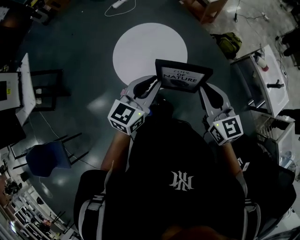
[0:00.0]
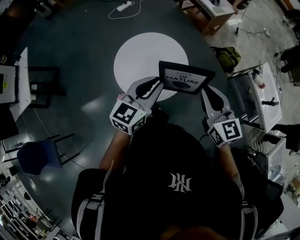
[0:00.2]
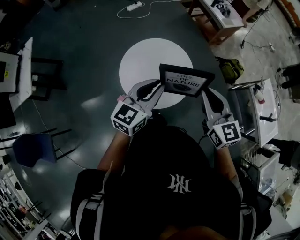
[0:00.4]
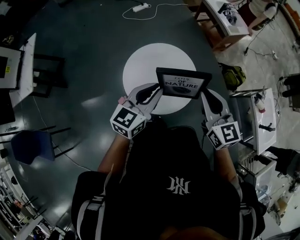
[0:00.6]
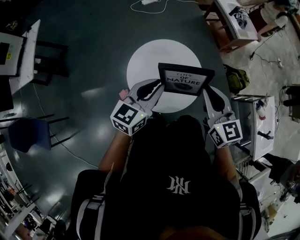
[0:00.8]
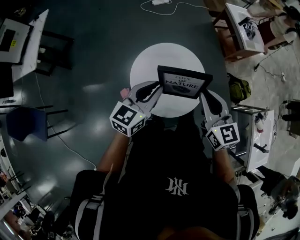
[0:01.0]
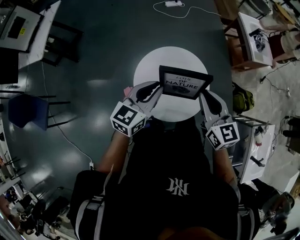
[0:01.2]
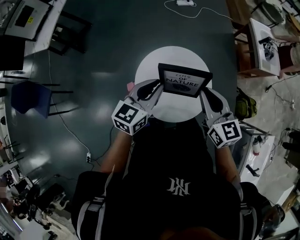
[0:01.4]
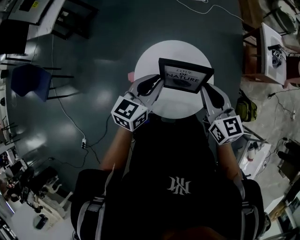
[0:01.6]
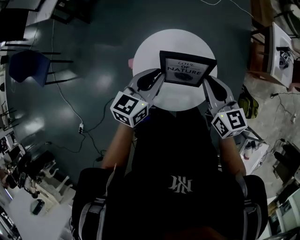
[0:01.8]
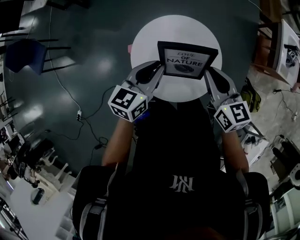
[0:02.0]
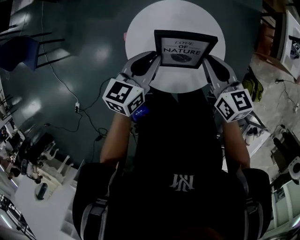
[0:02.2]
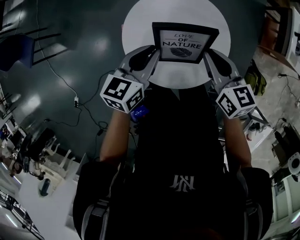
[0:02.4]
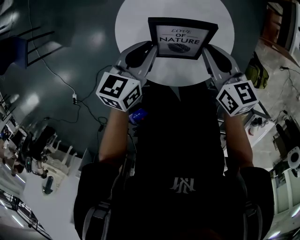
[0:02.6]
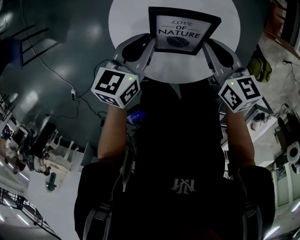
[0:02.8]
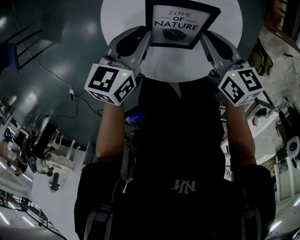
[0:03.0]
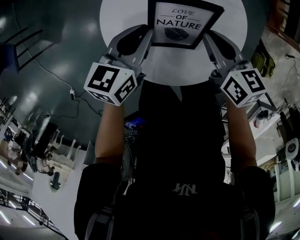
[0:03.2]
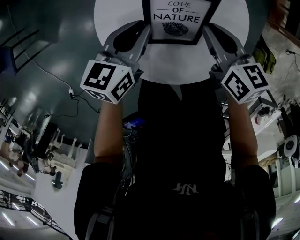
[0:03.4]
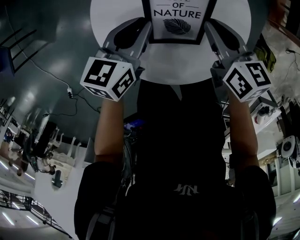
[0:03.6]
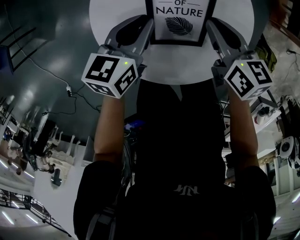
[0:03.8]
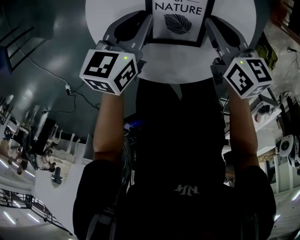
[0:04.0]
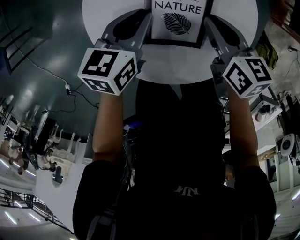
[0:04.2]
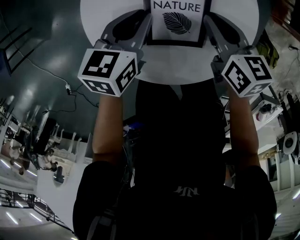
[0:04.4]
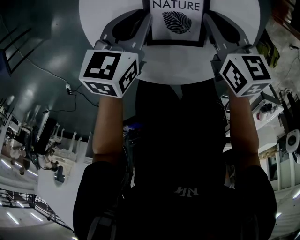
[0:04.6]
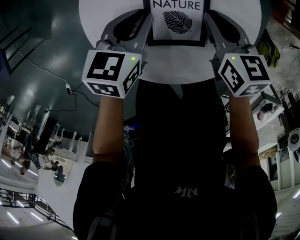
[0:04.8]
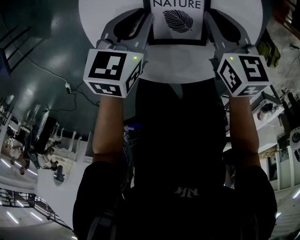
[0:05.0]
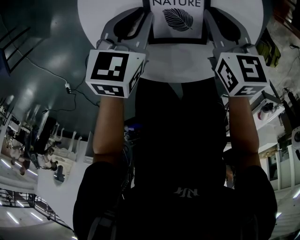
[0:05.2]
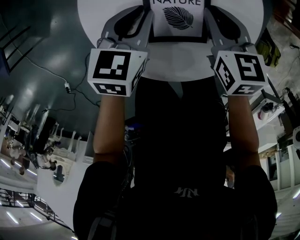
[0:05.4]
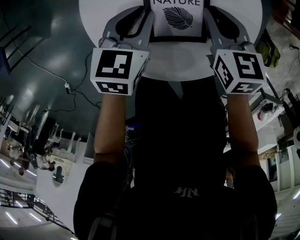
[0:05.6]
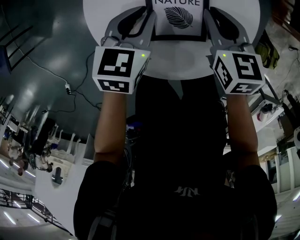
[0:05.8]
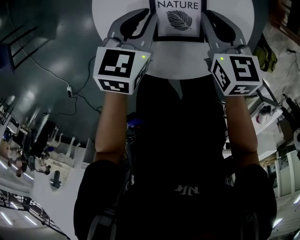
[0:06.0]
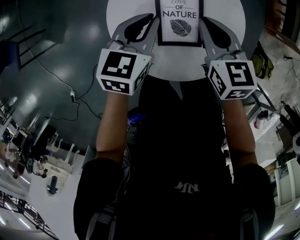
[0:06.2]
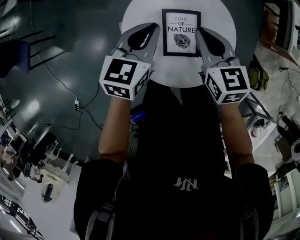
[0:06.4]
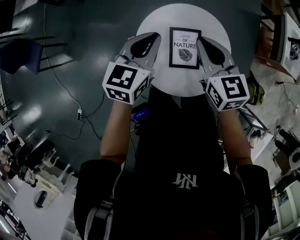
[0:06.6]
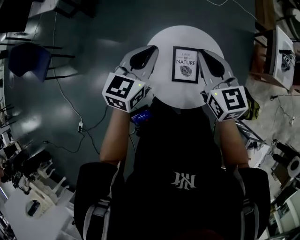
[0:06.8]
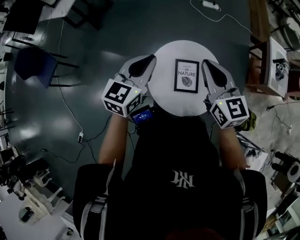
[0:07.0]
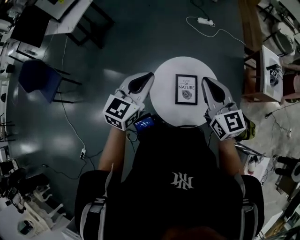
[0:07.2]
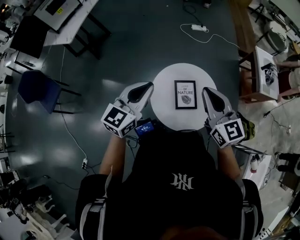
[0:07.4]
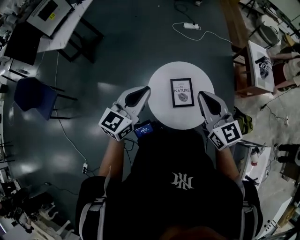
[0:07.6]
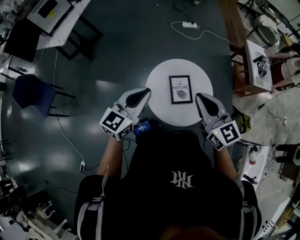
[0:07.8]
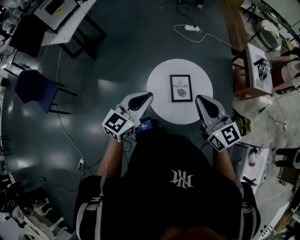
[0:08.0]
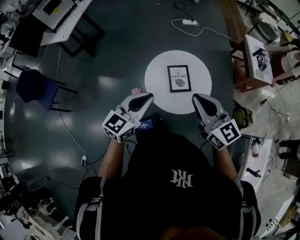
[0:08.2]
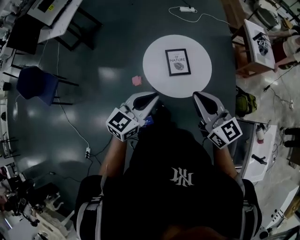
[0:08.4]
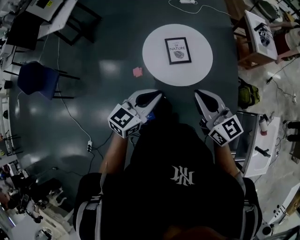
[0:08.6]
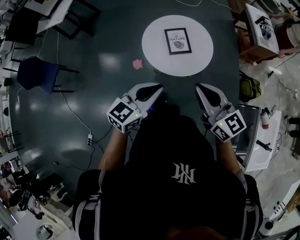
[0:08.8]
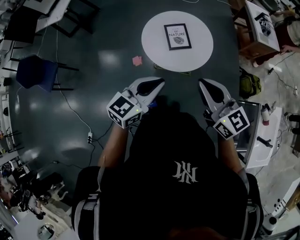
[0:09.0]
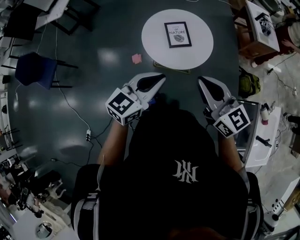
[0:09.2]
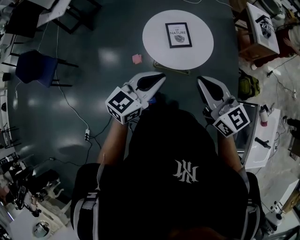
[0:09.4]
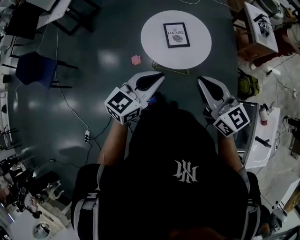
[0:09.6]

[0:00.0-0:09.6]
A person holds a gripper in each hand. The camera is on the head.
0:00.0 to 0:01.6: The left gripper changes place by roughly 25 cm, and rotates about 40 degrees; the right gripper ends up some 35 cm from where it was, and changes its angle by about 40 degrees.
0:01.6 to 0:03.2: Both grippers move downward, approximately 30 cm. The right gripper rotates about 30 degrees.
0:03.2 to 0:04.8: Both grippers move downward, some 10 cm.
0:04.8 to 0:06.4: Both grippers travel together upward, approximately 20 cm.
0:06.4 to 0:08.0: The two grippers go approximately 35 cm upward and backward. The left gripper rotates roughly 30 degrees. The right gripper swivels approximately 30 degrees.
0:08.0 to 0:09.6: The left gripper heads backward and to the right, covering about 25 cm; the right gripper travels backward by roughly 25 cm.

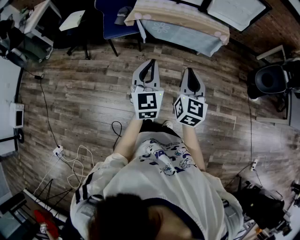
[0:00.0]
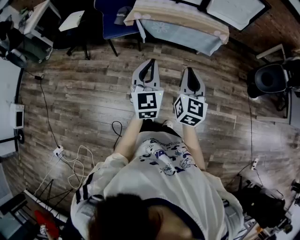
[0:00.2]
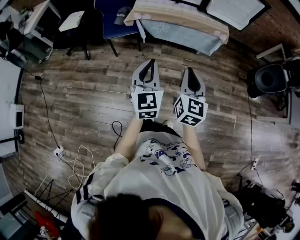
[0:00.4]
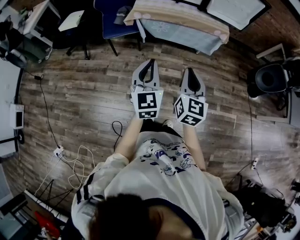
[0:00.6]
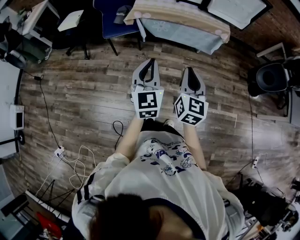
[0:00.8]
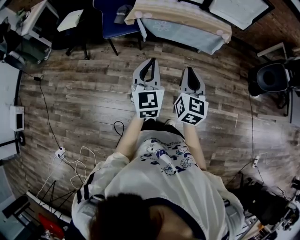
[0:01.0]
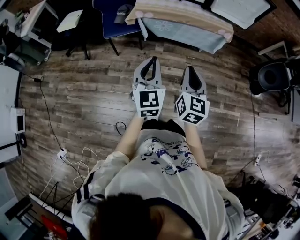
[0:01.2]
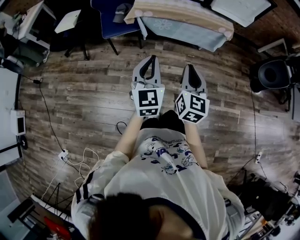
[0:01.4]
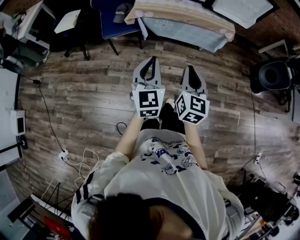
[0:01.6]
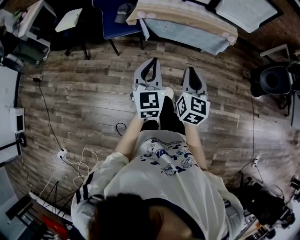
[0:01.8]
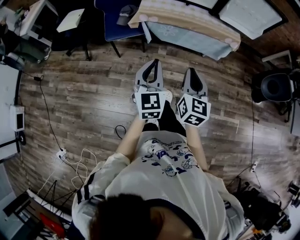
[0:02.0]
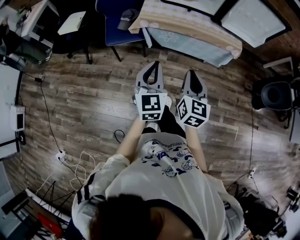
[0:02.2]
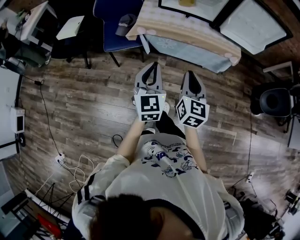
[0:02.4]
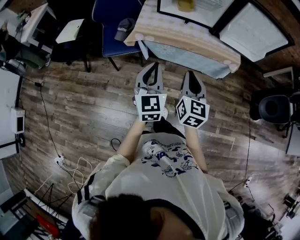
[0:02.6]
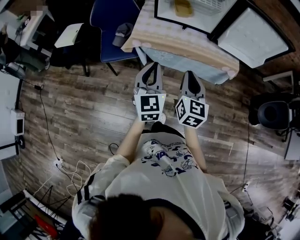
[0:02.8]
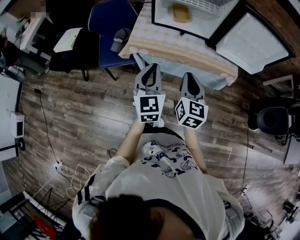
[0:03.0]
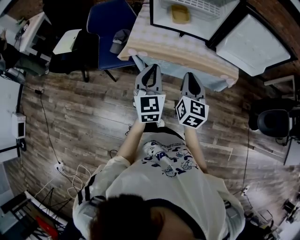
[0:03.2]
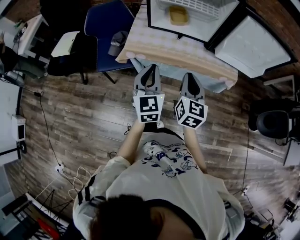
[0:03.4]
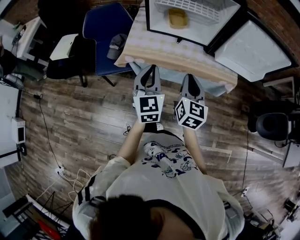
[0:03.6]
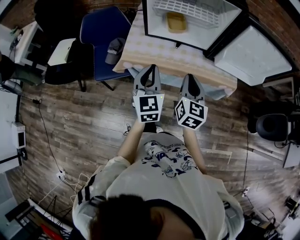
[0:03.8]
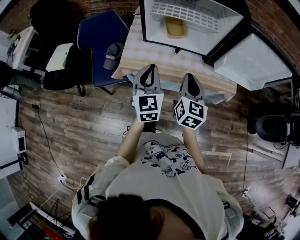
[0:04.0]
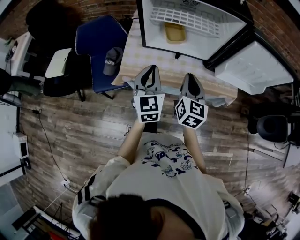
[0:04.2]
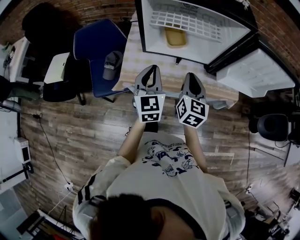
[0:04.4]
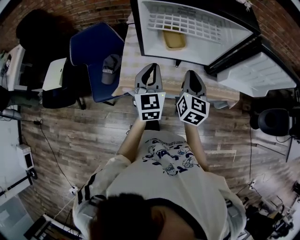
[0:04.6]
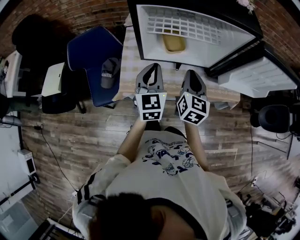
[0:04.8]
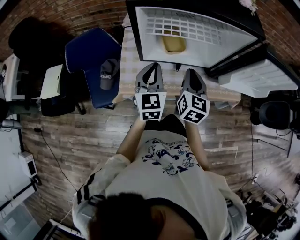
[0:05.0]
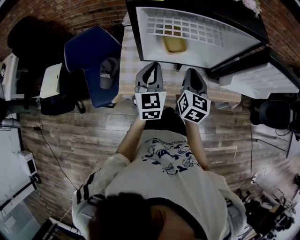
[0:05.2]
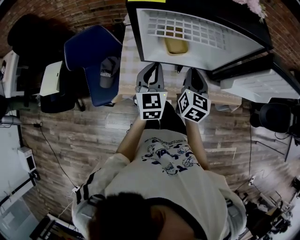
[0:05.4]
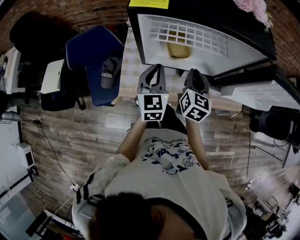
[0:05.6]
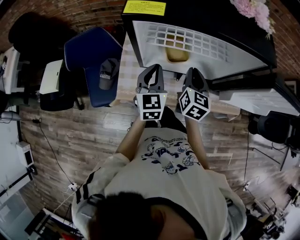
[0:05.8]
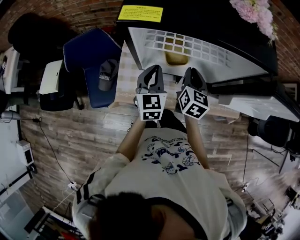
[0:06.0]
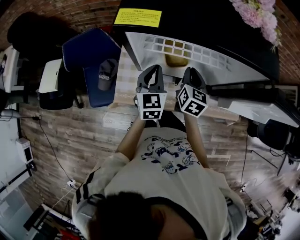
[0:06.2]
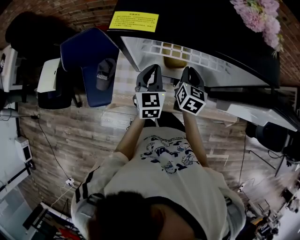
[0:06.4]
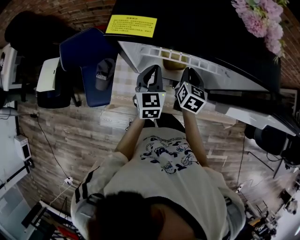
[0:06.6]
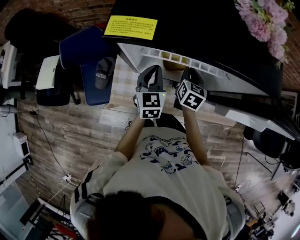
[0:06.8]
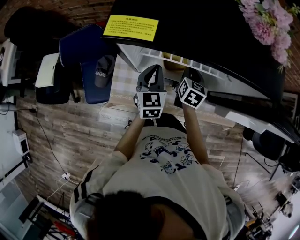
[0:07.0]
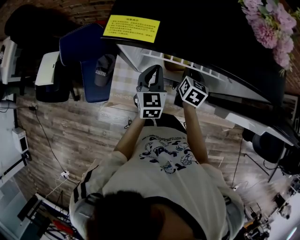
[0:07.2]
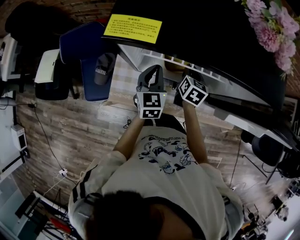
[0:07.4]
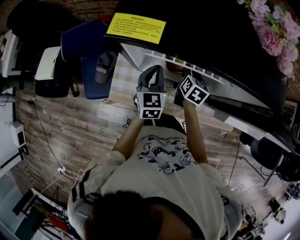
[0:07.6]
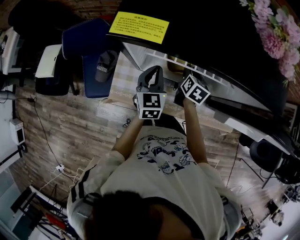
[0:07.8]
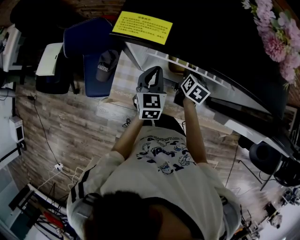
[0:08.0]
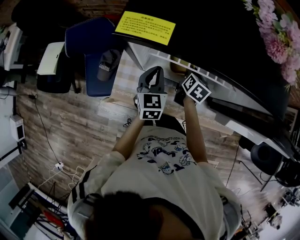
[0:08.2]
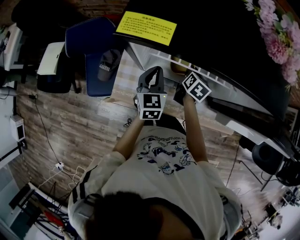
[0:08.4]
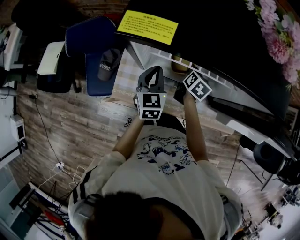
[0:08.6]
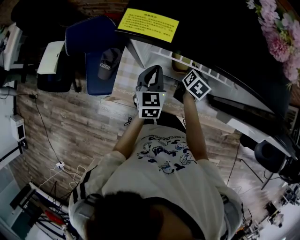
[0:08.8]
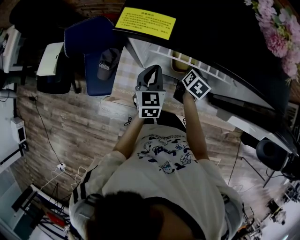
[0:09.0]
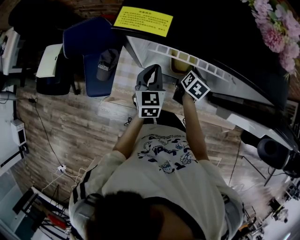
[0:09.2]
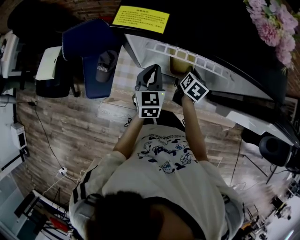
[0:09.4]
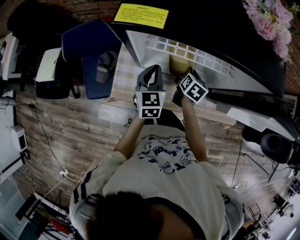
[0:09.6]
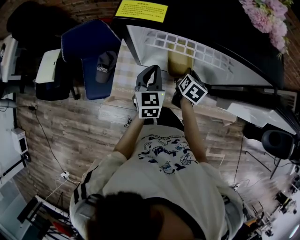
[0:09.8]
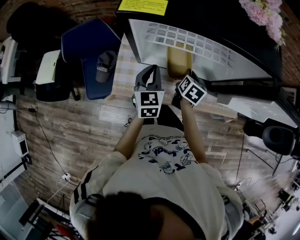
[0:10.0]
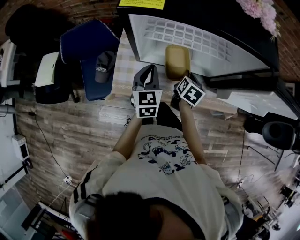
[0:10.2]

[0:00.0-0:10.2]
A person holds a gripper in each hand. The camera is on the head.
0:00.0 to 0:01.4: The right gripper moves some 5 cm. The left gripper travels forward by roughly 5 cm.
0:01.4 to 0:03.0: The two grippers go about 30 cm forward.
0:03.0 to 0:04.4: The grippers both shift forward by some 25 cm.
0:04.4 to 0:05.8: Both grippers move forward, approximately 15 cm.
0:05.8 to 0:07.2: The left gripper moves forward and downward, some 10 cm. The right gripper moves downward and forward, some 15 cm.
0:07.2 to 0:08.8: The grippers make only small movements.
0:08.8 to 0:10.2: The right gripper travels backward by about 10 cm, while the left gripper goes about 5 cm backward.

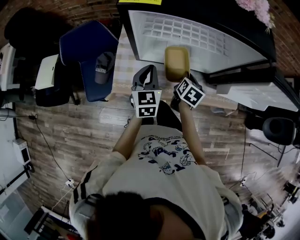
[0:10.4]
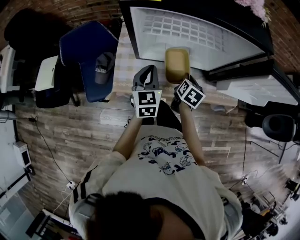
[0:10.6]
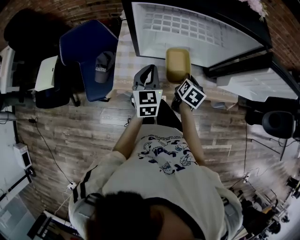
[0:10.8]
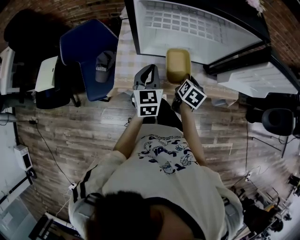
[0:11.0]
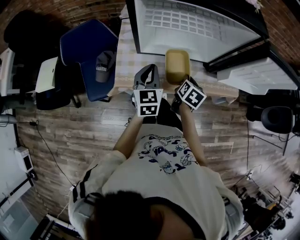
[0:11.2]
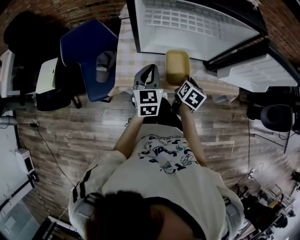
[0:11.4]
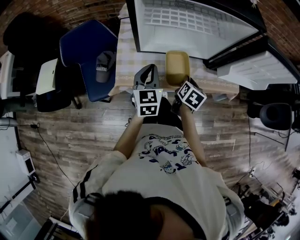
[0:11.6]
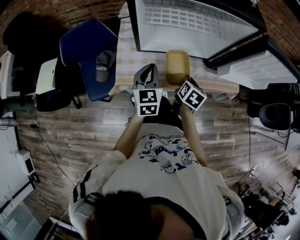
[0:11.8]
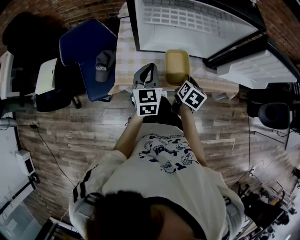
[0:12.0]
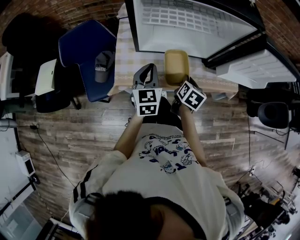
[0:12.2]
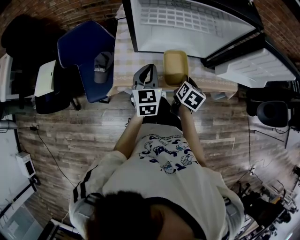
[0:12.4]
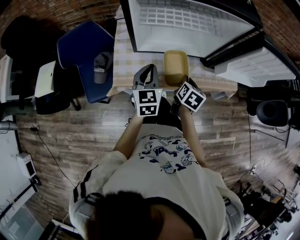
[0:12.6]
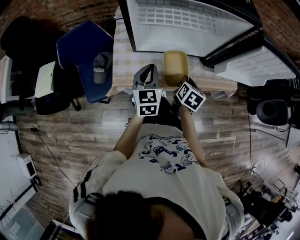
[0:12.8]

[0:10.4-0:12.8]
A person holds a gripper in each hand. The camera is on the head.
0:10.4 to 0:11.6: Both grippers travel together backward, approximately 10 cm.
0:11.6 to 0:12.8: The two grippers keep their place.

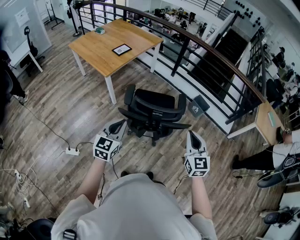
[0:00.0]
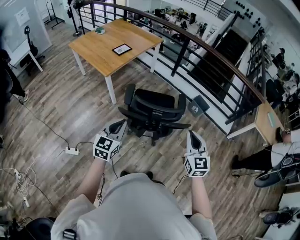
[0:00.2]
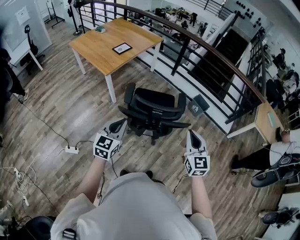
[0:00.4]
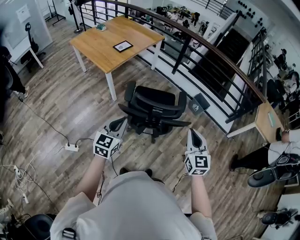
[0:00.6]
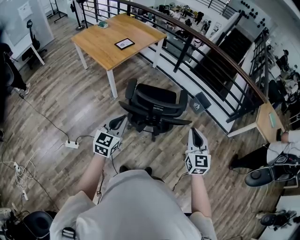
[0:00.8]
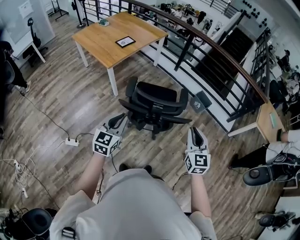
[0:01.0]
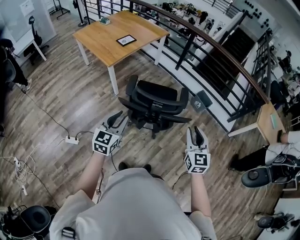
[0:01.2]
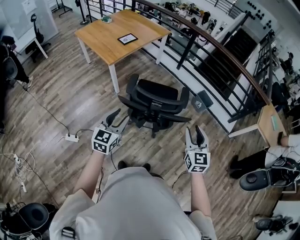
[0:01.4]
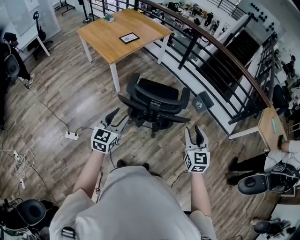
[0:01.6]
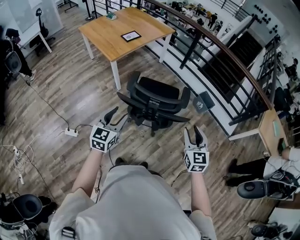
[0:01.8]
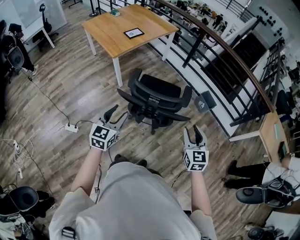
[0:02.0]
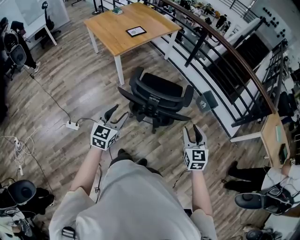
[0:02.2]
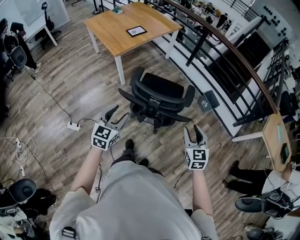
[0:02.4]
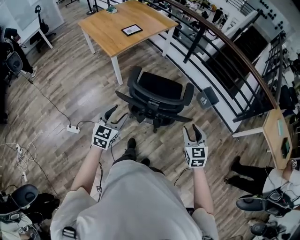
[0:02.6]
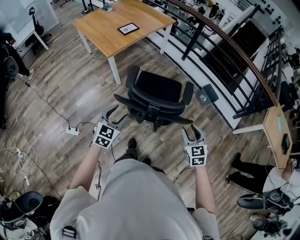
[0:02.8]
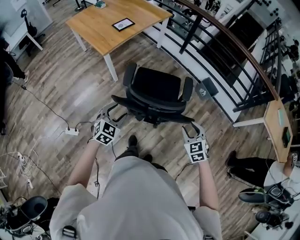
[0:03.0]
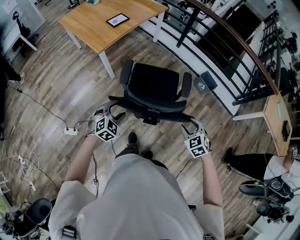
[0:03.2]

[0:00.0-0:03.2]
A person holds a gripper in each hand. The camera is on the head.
0:00.0 to 0:01.6: The left gripper opens up. Meanwhile the right gripper opens up.
0:01.6 to 0:03.2: The two grippers go some 20 cm downward and forward. The left gripper swivels approximately 50 degrees, while the right gripper points its fingers roughly 30 degrees further downward.
